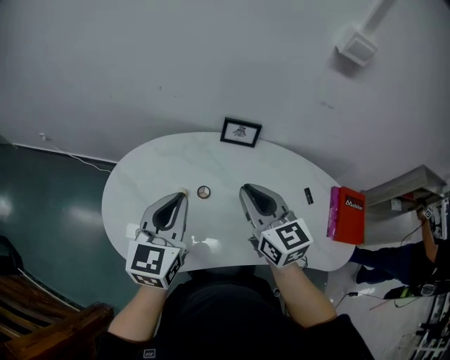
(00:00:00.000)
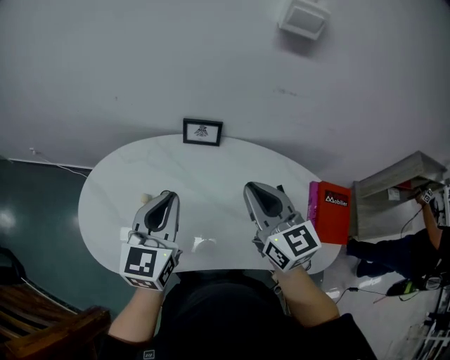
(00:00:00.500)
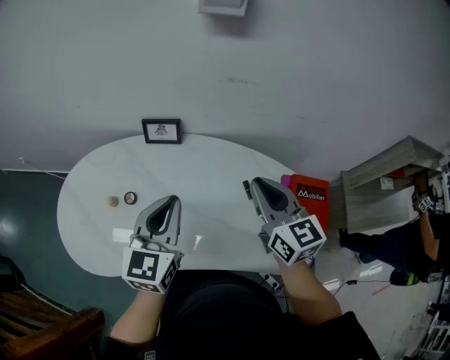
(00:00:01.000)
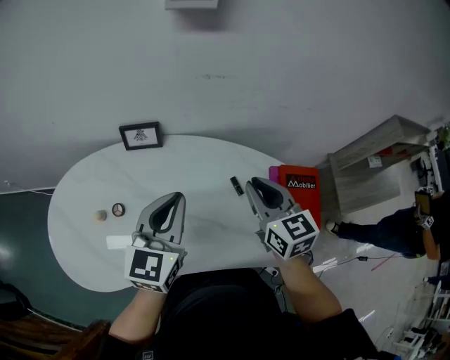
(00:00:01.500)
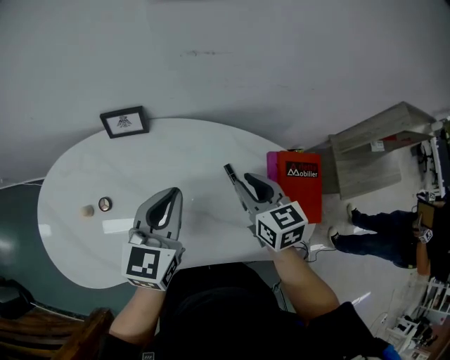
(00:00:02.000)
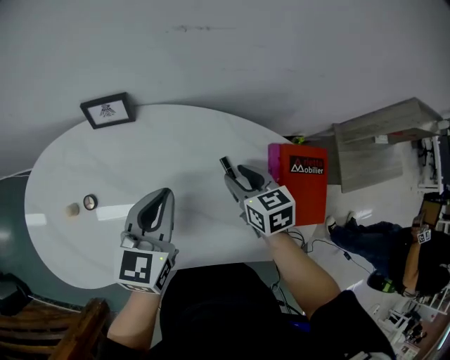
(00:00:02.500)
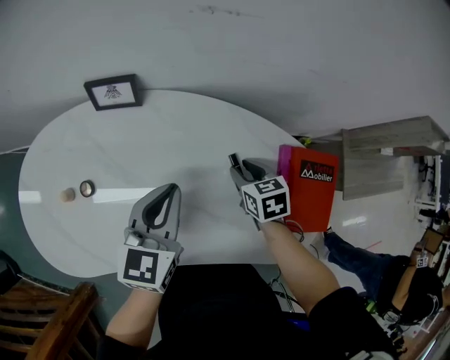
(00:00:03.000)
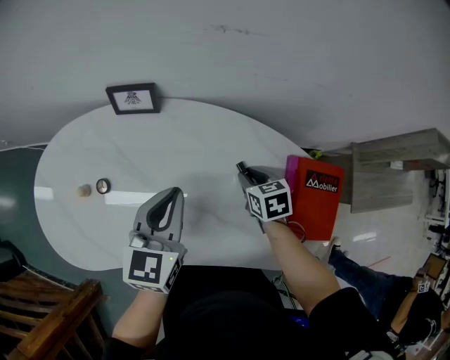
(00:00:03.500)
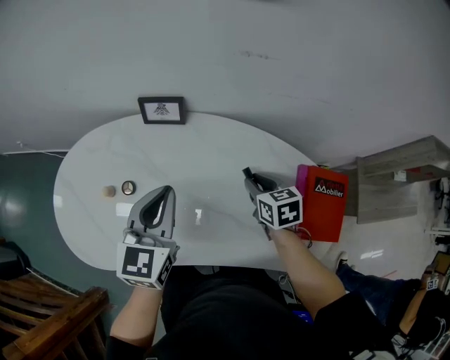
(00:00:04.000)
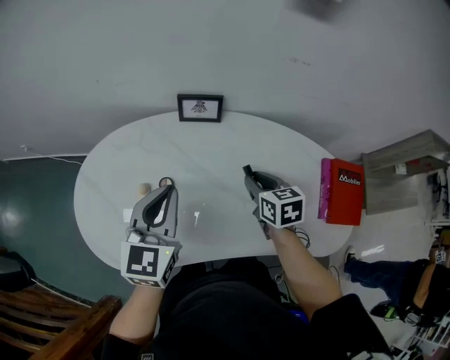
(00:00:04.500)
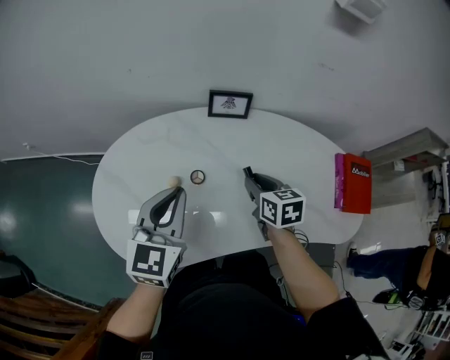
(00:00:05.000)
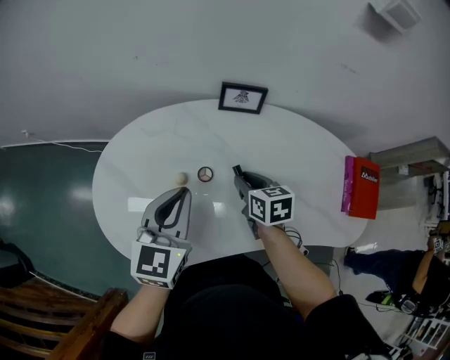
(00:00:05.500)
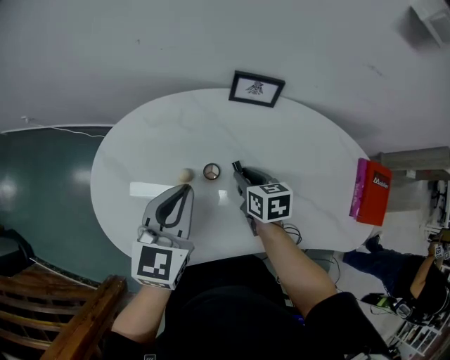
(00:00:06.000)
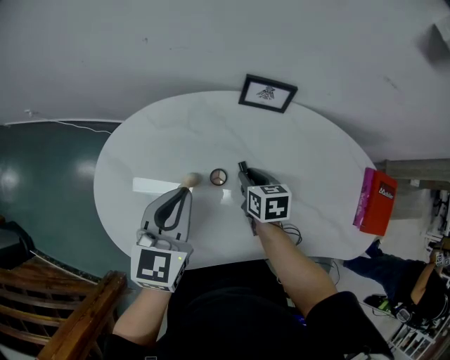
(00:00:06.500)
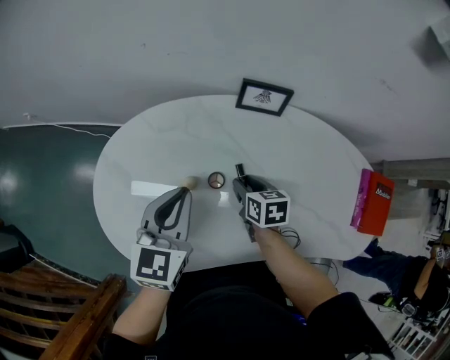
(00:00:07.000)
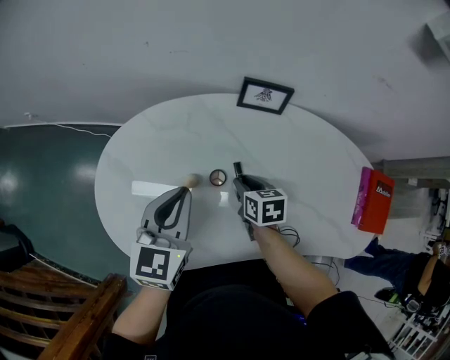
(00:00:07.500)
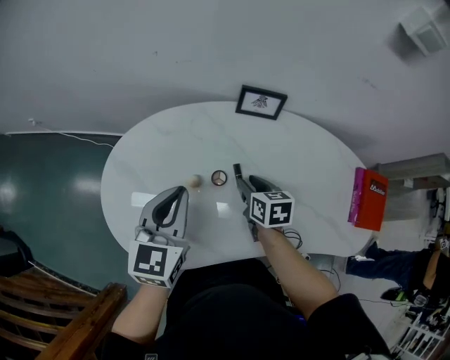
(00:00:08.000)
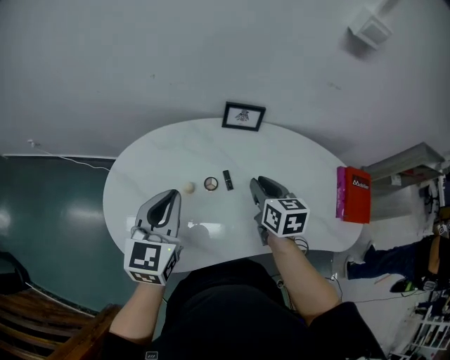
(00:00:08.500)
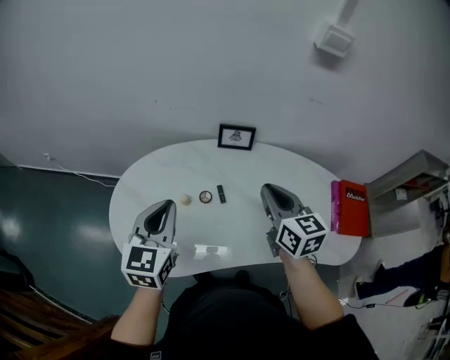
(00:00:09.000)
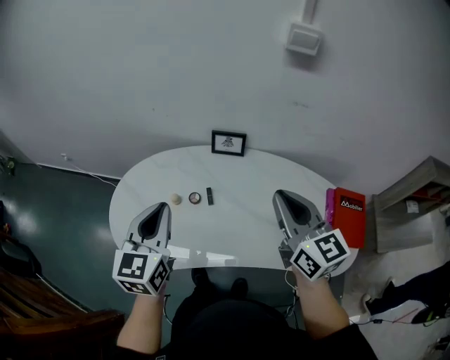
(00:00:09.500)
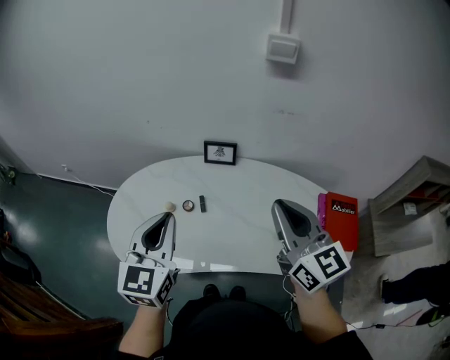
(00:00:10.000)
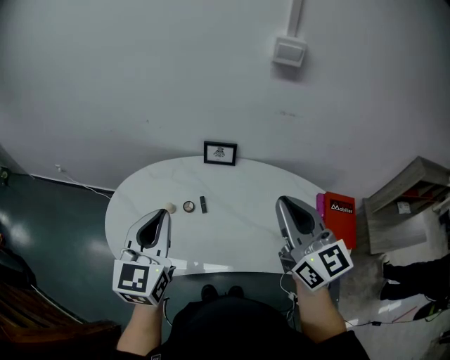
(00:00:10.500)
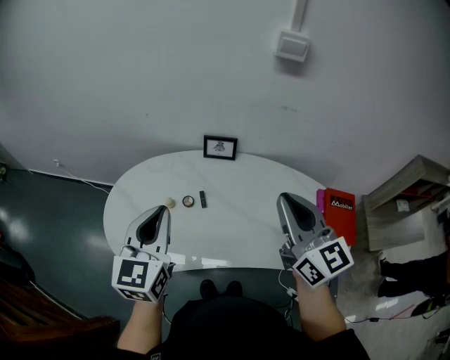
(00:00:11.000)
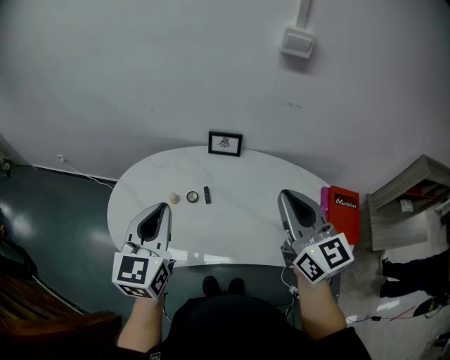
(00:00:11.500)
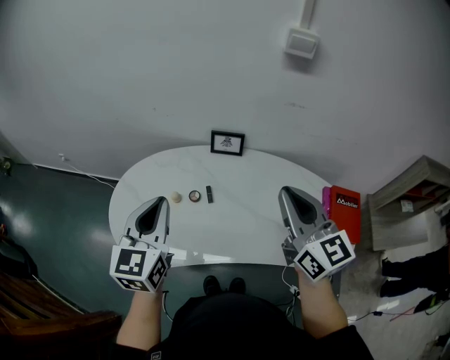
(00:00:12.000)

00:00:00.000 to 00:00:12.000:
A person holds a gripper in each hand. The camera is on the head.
00:00:00.000 to 00:00:02.000: Both grippers travel together to the right, some 35 cm. The right gripper swivels roughly 20 degrees.
00:00:02.000 to 00:00:04.000: The right gripper shifts some 10 cm downward; the left gripper heads to the left, covering roughly 10 cm.
00:00:04.000 to 00:00:06.000: Both grippers move to the left, roughly 30 cm.
00:00:06.000 to 00:00:08.000: There are only small adjustments of the grippers.
00:00:08.000 to 00:00:10.000: The right gripper heads upward, to the right and backward, covering some 40 cm, tilts its fingers about 50 degrees upward, and closes its fingers. The left gripper moves upward, backward and to the right, roughly 25 cm.
00:00:10.000 to 00:00:12.000: The left gripper travels to the left by about 5 cm.

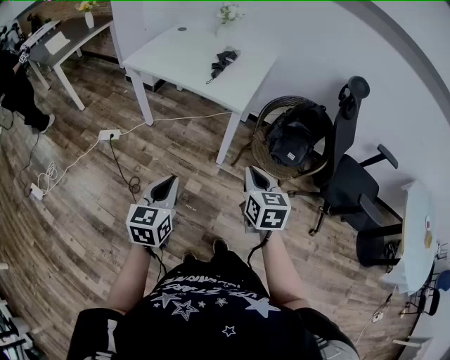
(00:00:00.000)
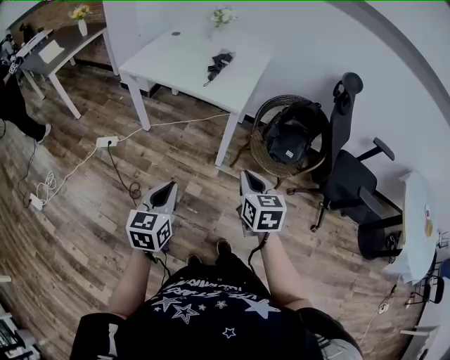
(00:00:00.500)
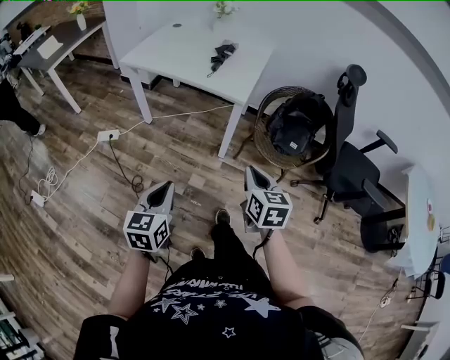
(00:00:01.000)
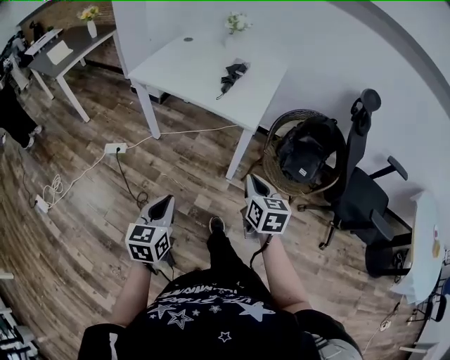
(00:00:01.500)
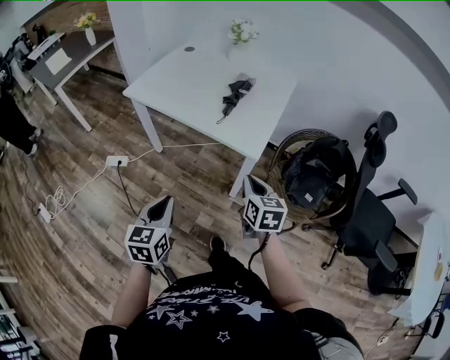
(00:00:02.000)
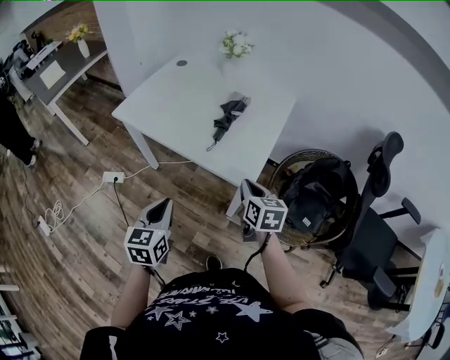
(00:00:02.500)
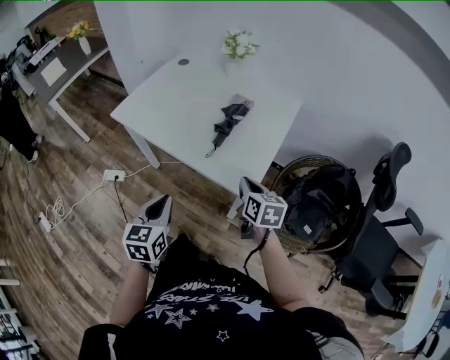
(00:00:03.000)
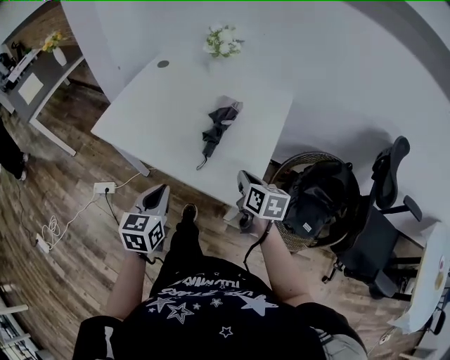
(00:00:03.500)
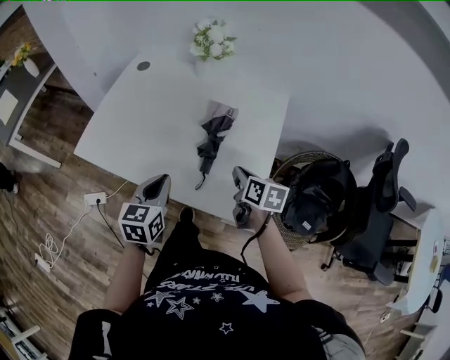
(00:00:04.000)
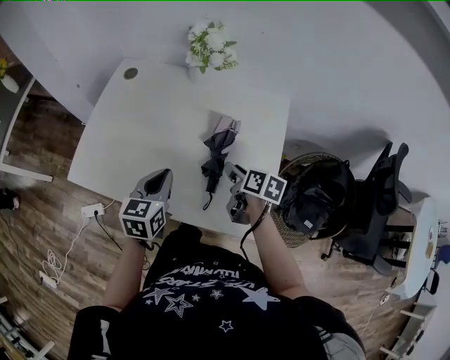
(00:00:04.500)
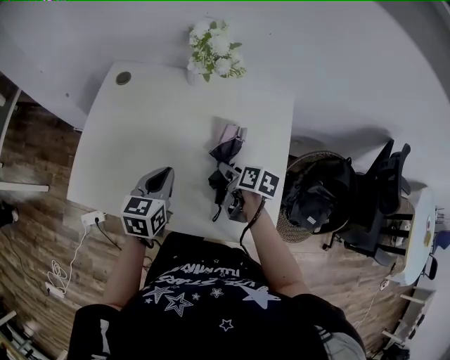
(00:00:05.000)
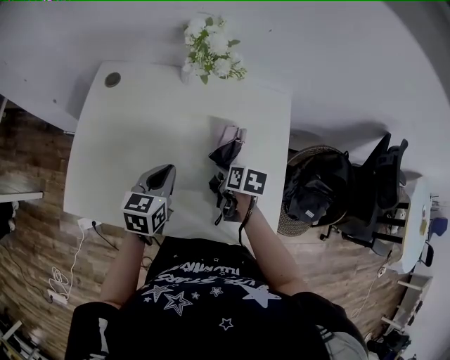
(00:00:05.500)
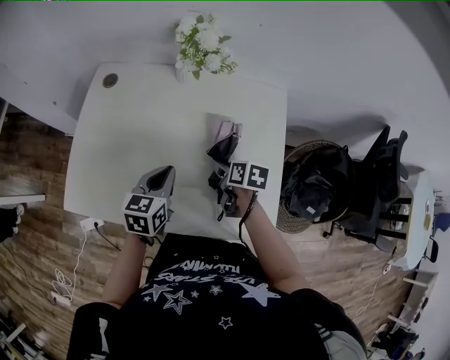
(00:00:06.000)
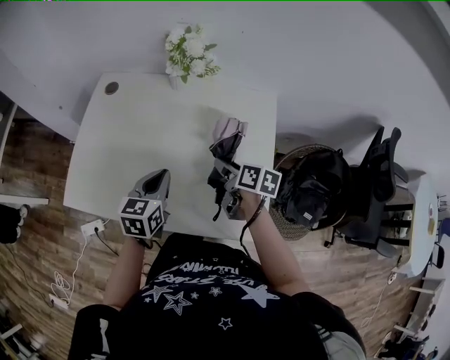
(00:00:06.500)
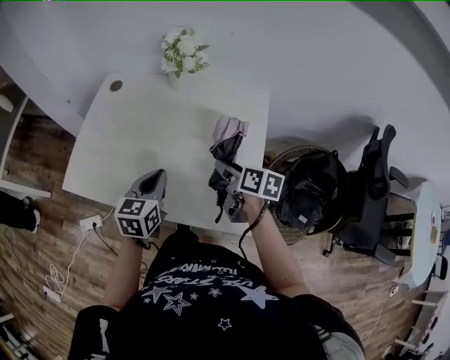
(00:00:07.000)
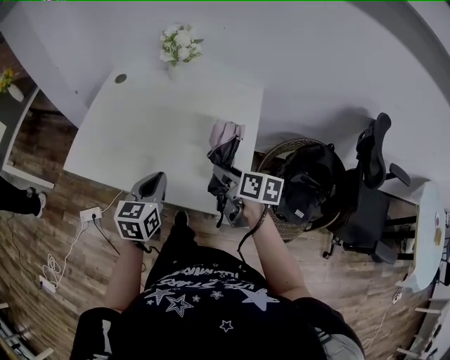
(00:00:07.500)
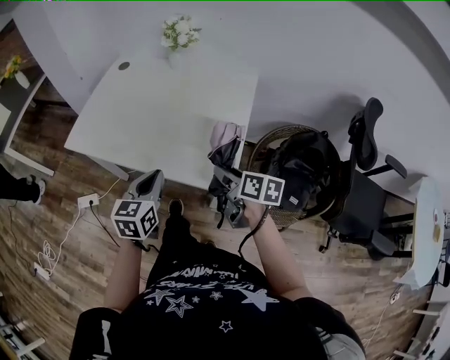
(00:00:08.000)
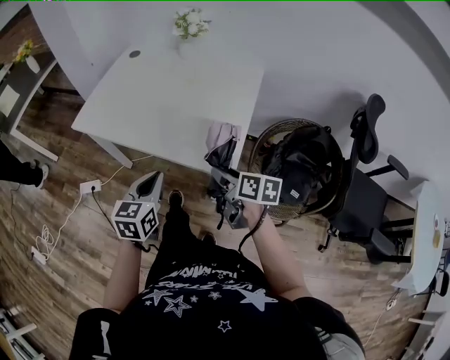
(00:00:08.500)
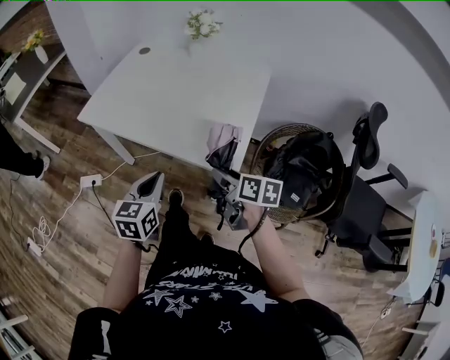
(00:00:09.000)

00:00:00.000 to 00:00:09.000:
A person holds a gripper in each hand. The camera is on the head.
00:00:00.000 to 00:00:02.000: The grippers both shift forward by approximately 20 cm.
00:00:02.000 to 00:00:04.500: The pair of grippers is taken forward, about 40 cm. The right gripper swivels about 40 degrees, and opens.
00:00:04.500 to 00:00:07.000: The left gripper goes forward and returns, some 10 cm each way, while the right gripper changes place by some 5 cm.
00:00:07.000 to 00:00:09.000: The two grippers go roughly 25 cm backward.

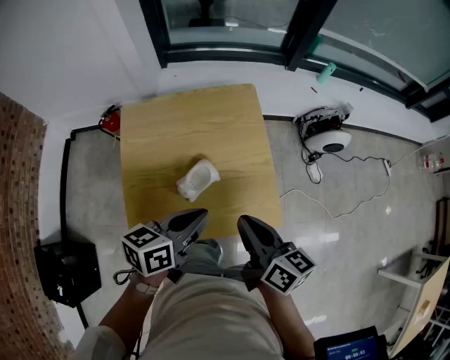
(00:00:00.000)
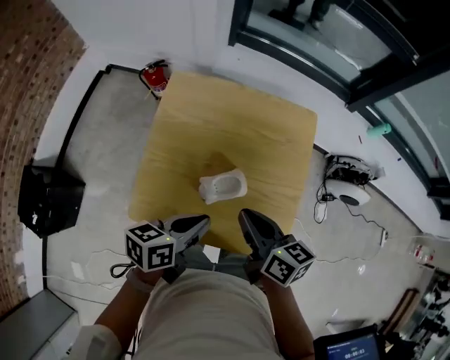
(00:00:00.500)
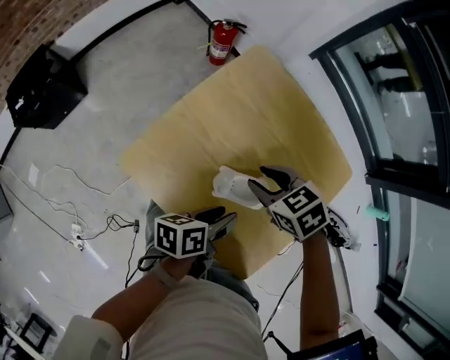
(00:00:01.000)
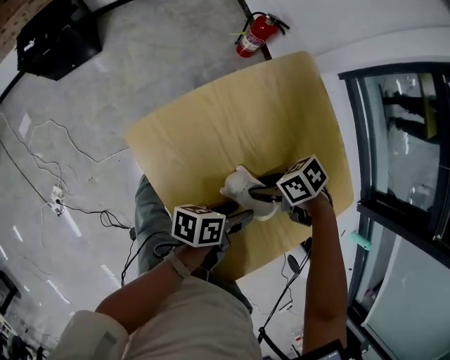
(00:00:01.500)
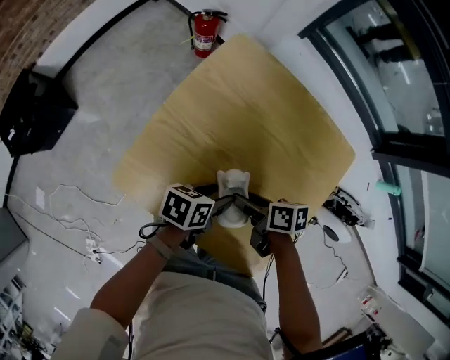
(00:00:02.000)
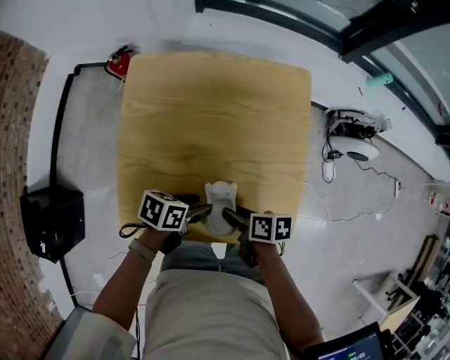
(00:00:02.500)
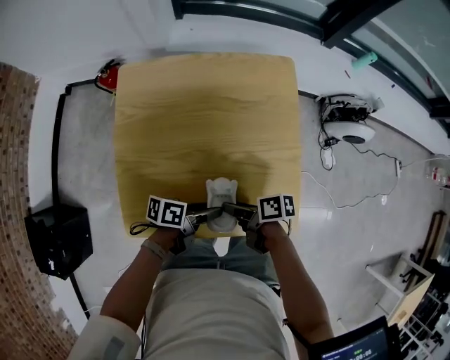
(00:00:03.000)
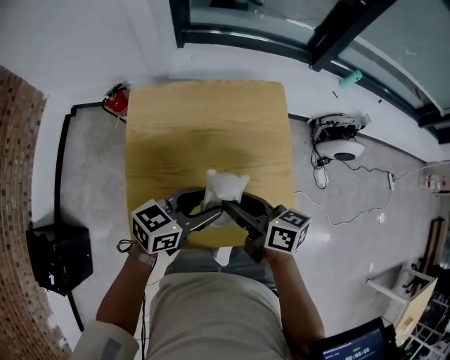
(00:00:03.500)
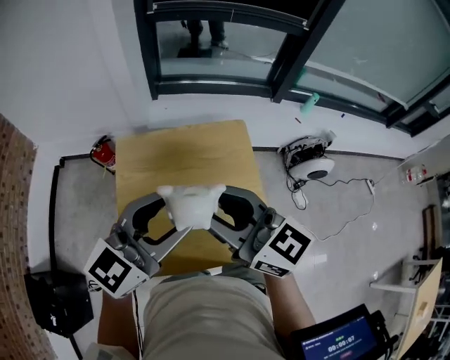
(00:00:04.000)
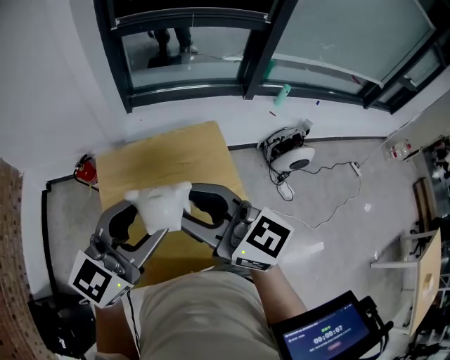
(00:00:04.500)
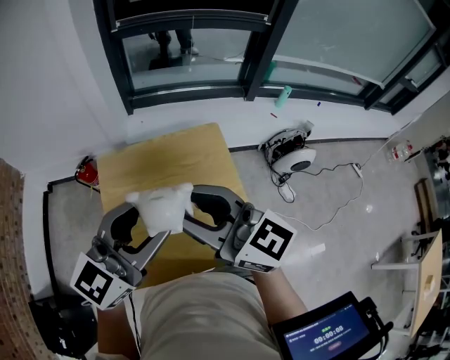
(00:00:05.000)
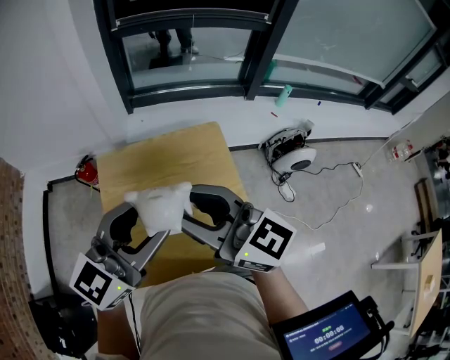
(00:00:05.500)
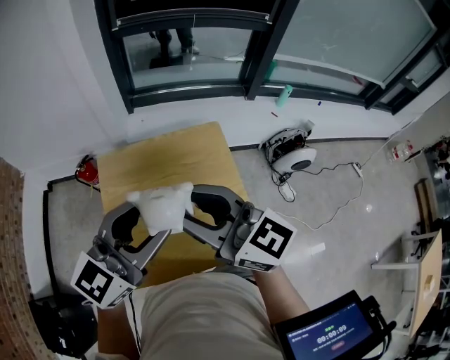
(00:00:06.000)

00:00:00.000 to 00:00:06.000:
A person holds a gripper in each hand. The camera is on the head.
00:00:00.000 to 00:00:02.000: Both grippers travel together downward, some 25 cm. The left gripper turns by approximately 40 degrees, and opens its fingers; the right gripper turns by approximately 70 degrees, and opens its fingers.
00:00:02.000 to 00:00:04.000: The two grippers go some 40 cm upward. The right gripper tilts its fingers about 40 degrees upward. The left gripper twists some 70 degrees clockwise, seen from behind.
00:00:04.000 to 00:00:06.000: The grippers make only small movements.
